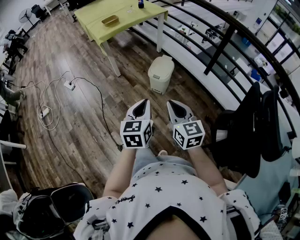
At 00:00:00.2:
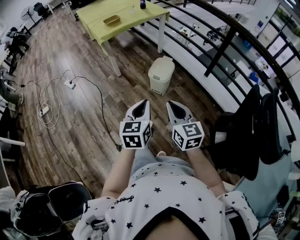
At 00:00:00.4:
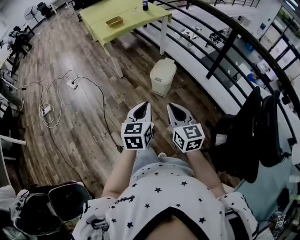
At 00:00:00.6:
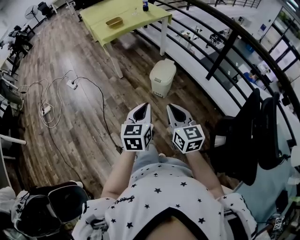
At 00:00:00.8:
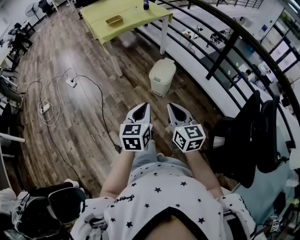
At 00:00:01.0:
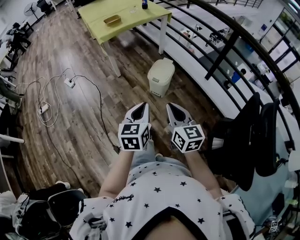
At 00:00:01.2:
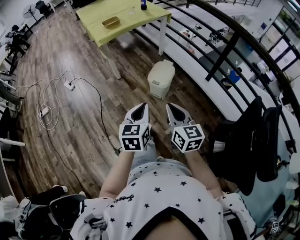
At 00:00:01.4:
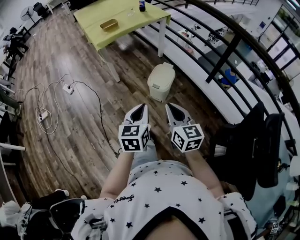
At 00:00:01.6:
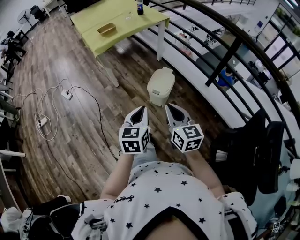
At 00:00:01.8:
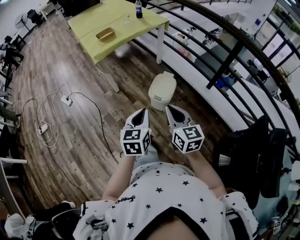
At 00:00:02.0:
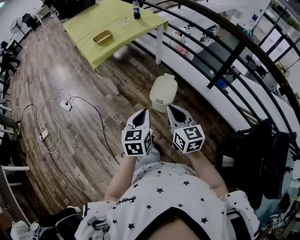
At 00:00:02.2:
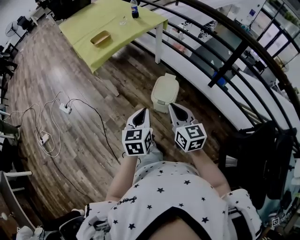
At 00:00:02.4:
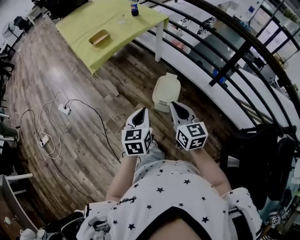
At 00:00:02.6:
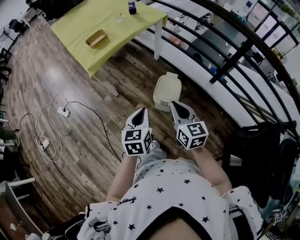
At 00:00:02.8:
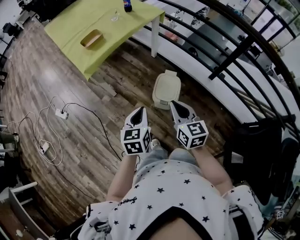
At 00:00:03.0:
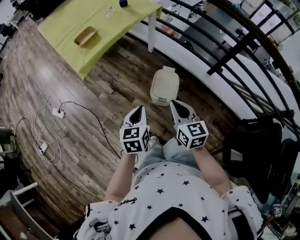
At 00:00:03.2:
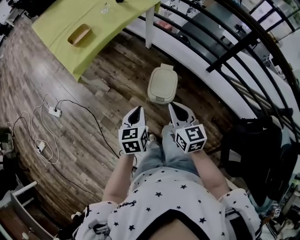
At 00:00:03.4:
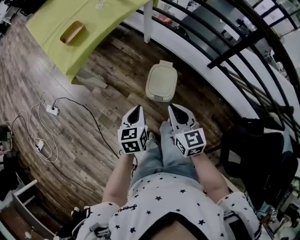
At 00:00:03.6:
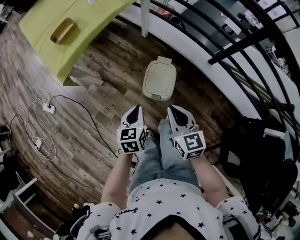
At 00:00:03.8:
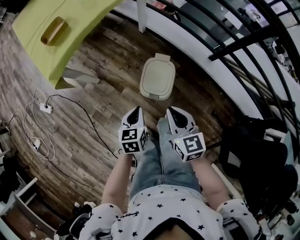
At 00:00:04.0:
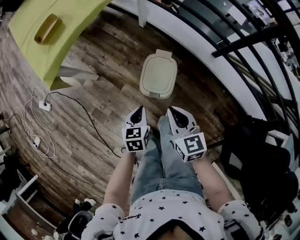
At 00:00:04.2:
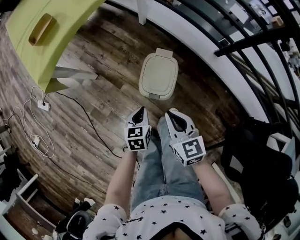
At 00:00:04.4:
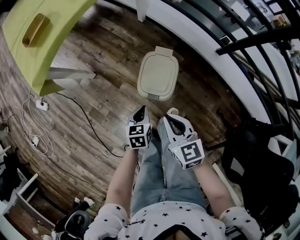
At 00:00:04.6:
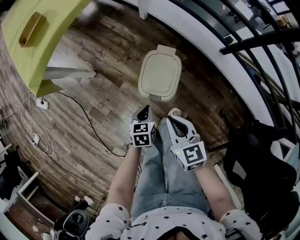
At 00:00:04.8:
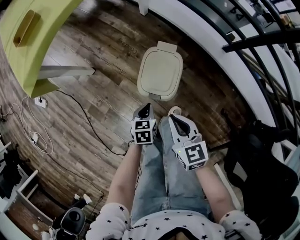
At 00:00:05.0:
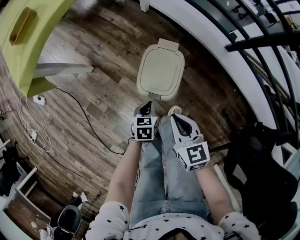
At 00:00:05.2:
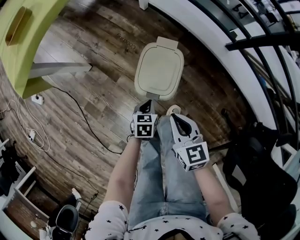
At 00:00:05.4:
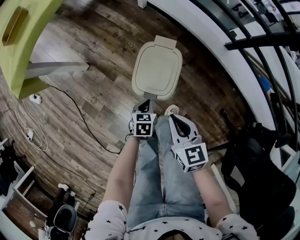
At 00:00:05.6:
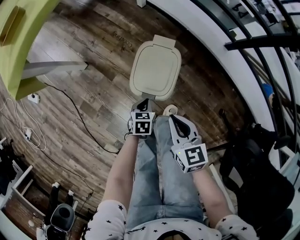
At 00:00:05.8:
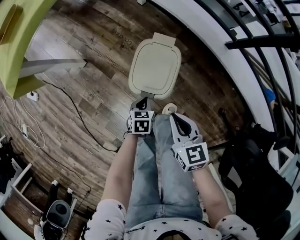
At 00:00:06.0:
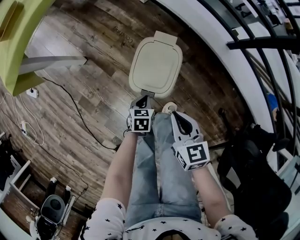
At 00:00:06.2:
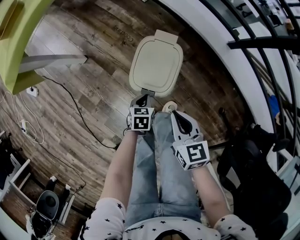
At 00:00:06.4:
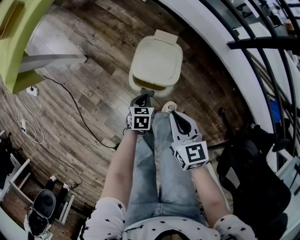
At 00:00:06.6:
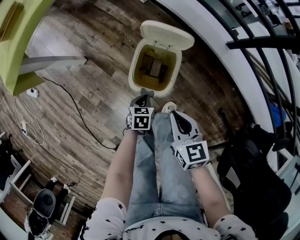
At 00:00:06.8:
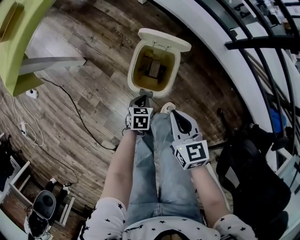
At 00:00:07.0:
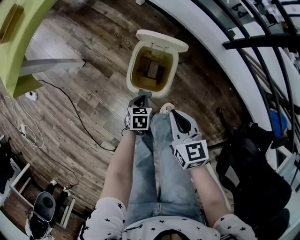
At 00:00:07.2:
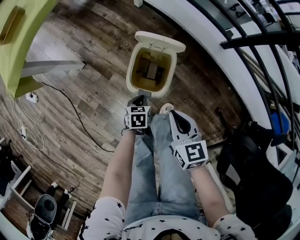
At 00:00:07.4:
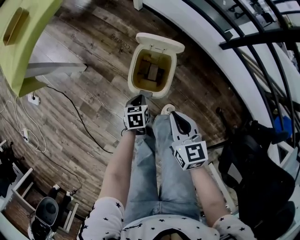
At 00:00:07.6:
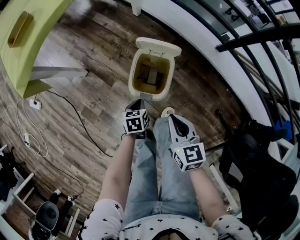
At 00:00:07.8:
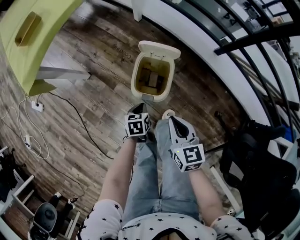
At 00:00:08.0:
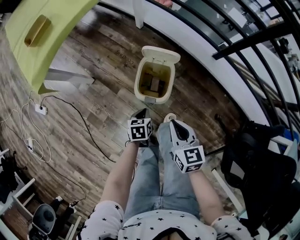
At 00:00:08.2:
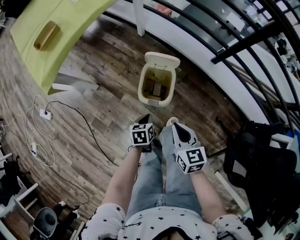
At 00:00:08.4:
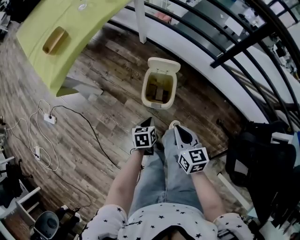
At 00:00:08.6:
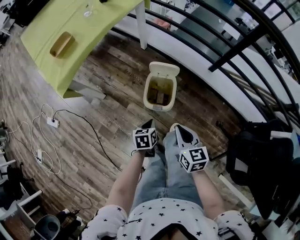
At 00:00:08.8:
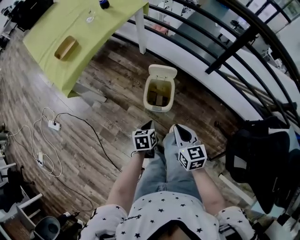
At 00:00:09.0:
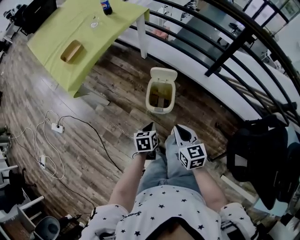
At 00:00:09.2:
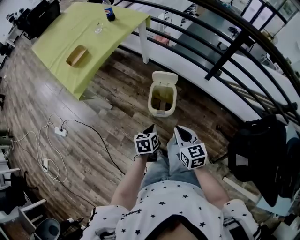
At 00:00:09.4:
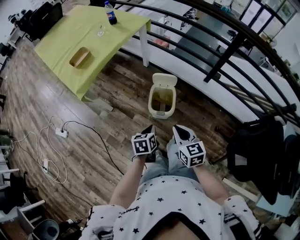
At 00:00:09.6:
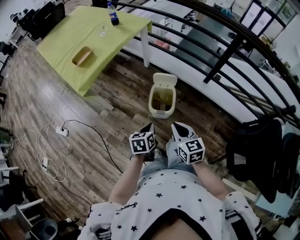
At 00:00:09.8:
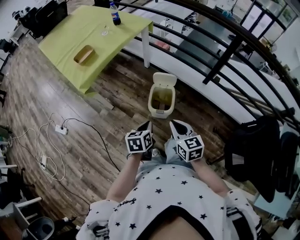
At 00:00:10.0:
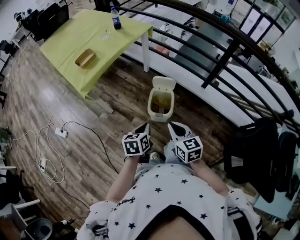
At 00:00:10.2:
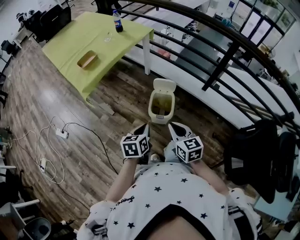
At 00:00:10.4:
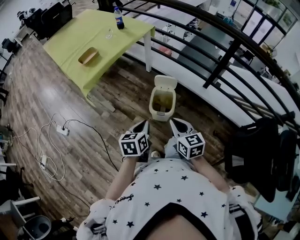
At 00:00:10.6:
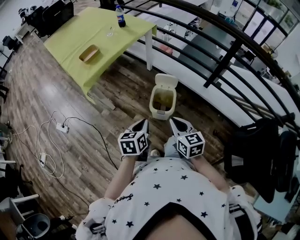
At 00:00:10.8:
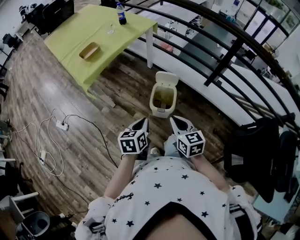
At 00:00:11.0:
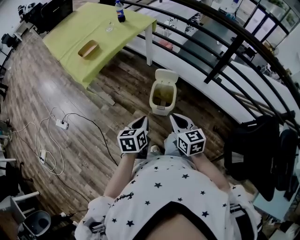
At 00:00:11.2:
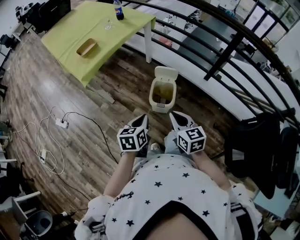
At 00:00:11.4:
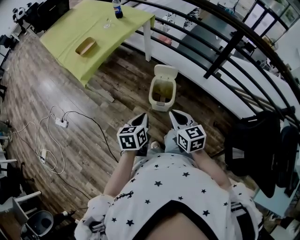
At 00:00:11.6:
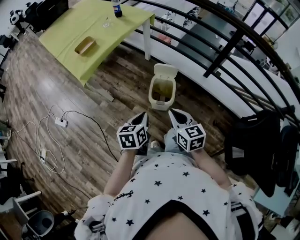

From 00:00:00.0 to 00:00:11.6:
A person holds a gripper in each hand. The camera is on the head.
From 00:00:00.0 to 00:00:01.4: The grippers both shift forward by roughly 10 cm.
From 00:00:01.4 to 00:00:02.8: Both grippers move forward, approximately 25 cm.
From 00:00:02.8 to 00:00:04.4: The grippers both shift downward by roughly 30 cm. The left gripper swivels roughly 20 degrees.
From 00:00:04.4 to 00:00:05.8: The right gripper is displaced downward and to the right by approximately 15 cm; the left gripper moves downward, approximately 20 cm.
From 00:00:05.8 to 00:00:07.2: The grippers make only small movements.
From 00:00:07.2 to 00:00:08.8: The left gripper heads upward, covering about 25 cm, while the right gripper heads upward and backward, covering approximately 20 cm.
From 00:00:08.8 to 00:00:10.2: The left gripper goes about 20 cm upward, while the right gripper is displaced upward by approximately 10 cm.
From 00:00:10.2 to 00:00:11.6: The grippers stay close to where they were, moving slightly.

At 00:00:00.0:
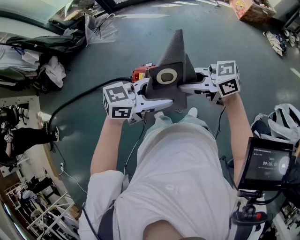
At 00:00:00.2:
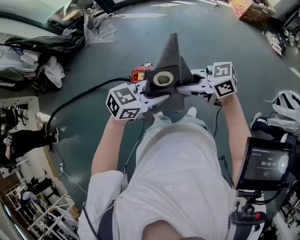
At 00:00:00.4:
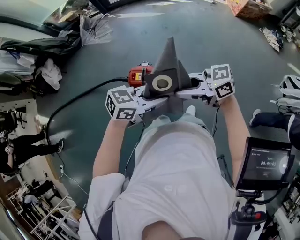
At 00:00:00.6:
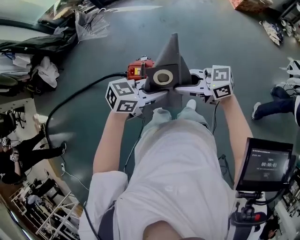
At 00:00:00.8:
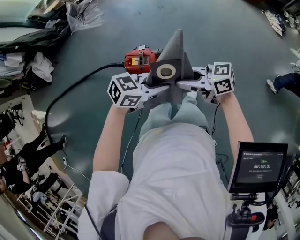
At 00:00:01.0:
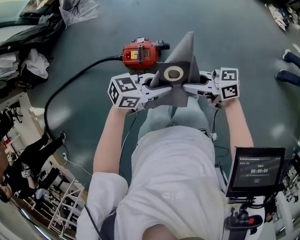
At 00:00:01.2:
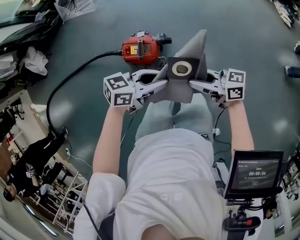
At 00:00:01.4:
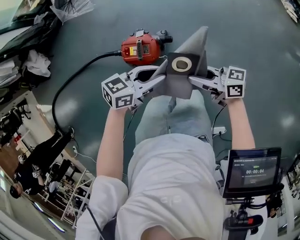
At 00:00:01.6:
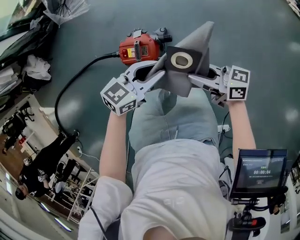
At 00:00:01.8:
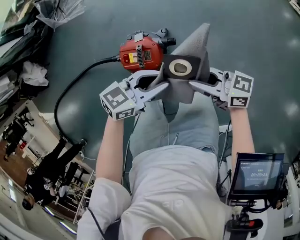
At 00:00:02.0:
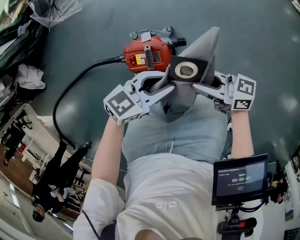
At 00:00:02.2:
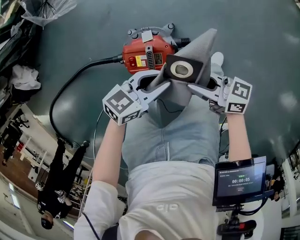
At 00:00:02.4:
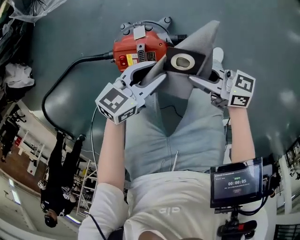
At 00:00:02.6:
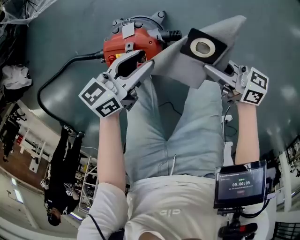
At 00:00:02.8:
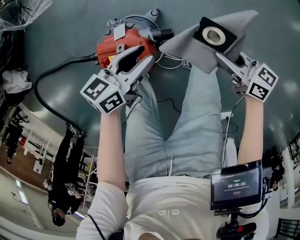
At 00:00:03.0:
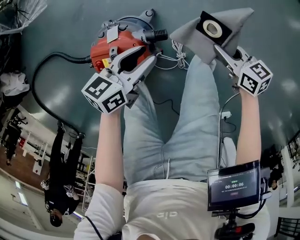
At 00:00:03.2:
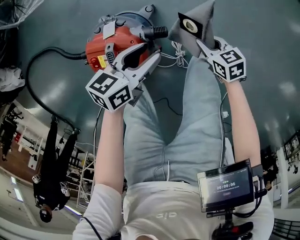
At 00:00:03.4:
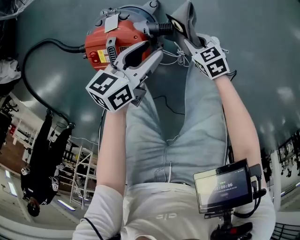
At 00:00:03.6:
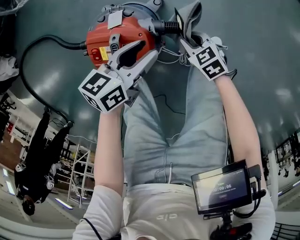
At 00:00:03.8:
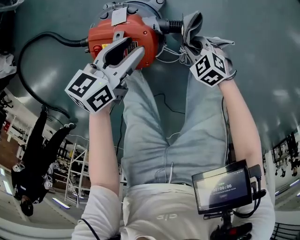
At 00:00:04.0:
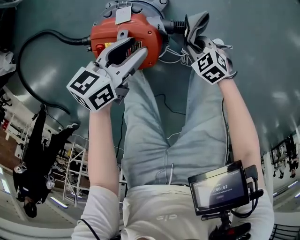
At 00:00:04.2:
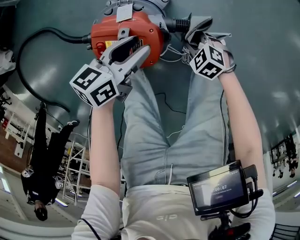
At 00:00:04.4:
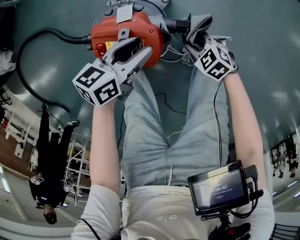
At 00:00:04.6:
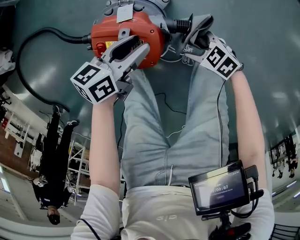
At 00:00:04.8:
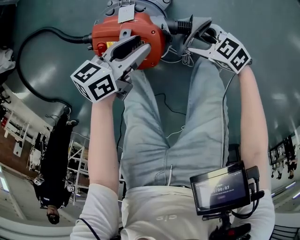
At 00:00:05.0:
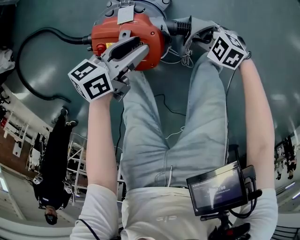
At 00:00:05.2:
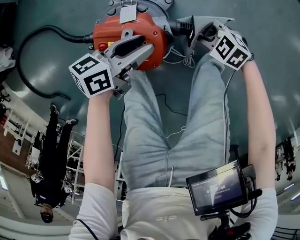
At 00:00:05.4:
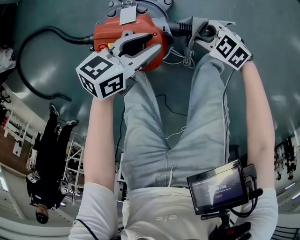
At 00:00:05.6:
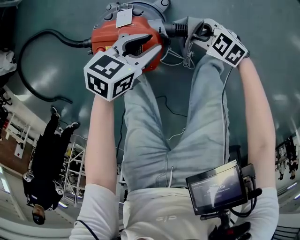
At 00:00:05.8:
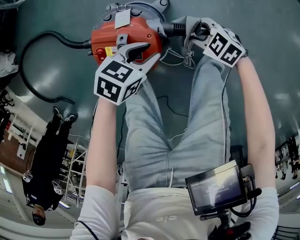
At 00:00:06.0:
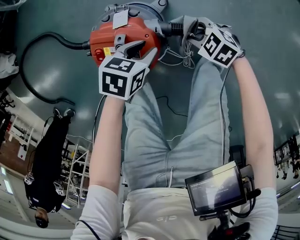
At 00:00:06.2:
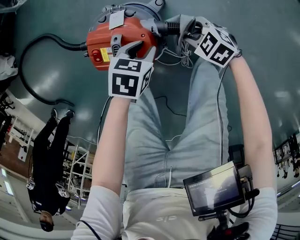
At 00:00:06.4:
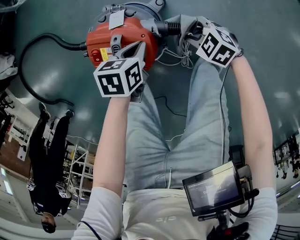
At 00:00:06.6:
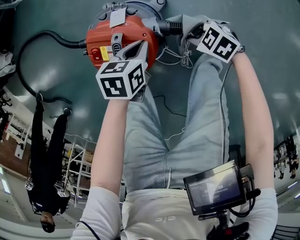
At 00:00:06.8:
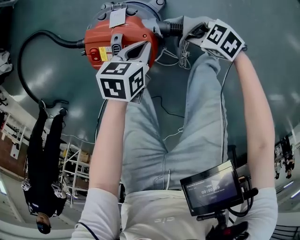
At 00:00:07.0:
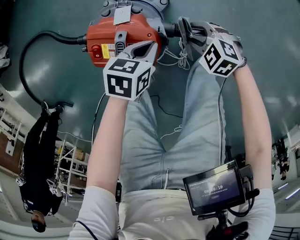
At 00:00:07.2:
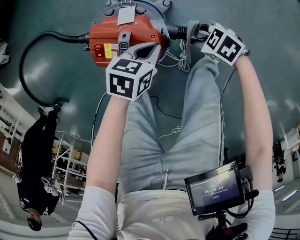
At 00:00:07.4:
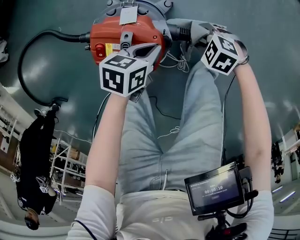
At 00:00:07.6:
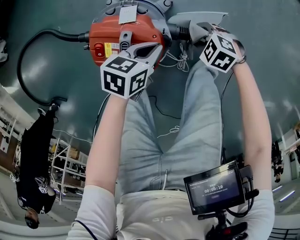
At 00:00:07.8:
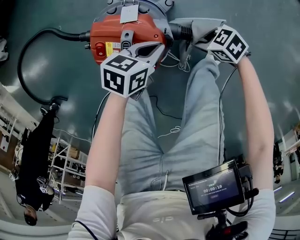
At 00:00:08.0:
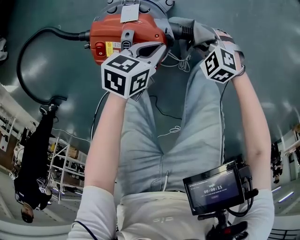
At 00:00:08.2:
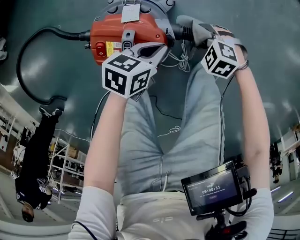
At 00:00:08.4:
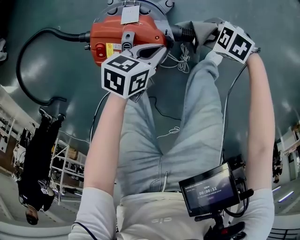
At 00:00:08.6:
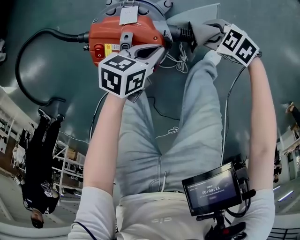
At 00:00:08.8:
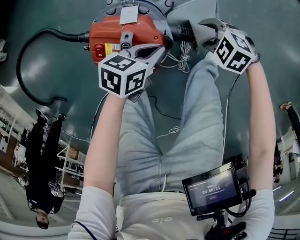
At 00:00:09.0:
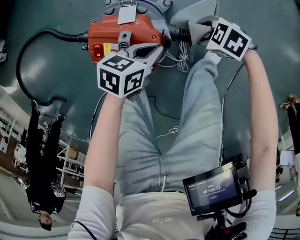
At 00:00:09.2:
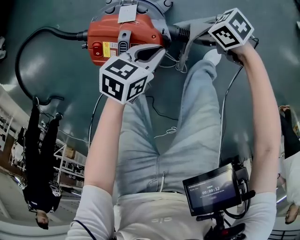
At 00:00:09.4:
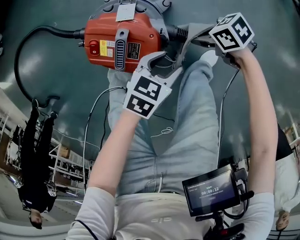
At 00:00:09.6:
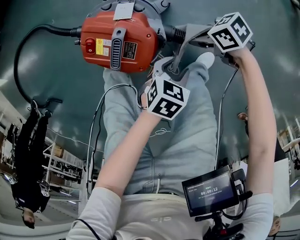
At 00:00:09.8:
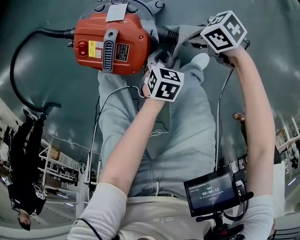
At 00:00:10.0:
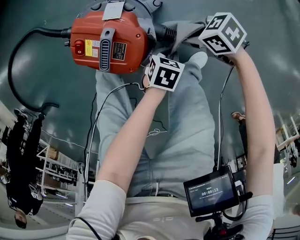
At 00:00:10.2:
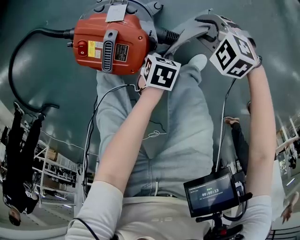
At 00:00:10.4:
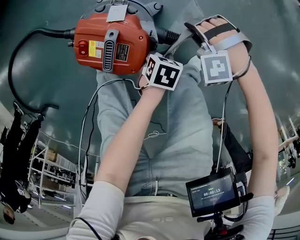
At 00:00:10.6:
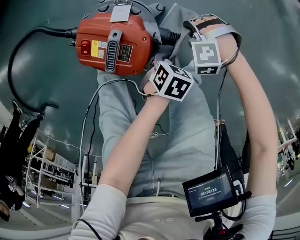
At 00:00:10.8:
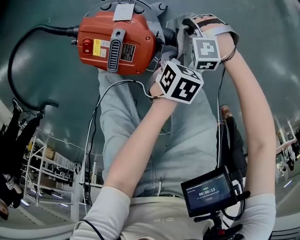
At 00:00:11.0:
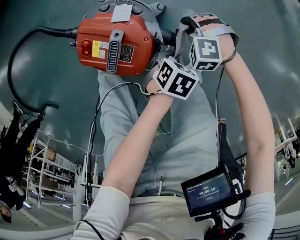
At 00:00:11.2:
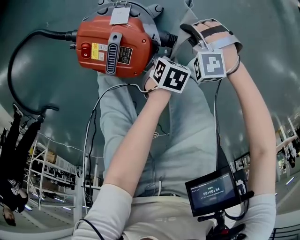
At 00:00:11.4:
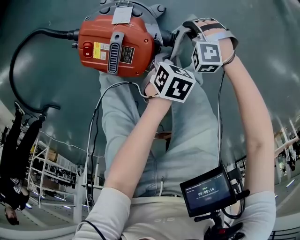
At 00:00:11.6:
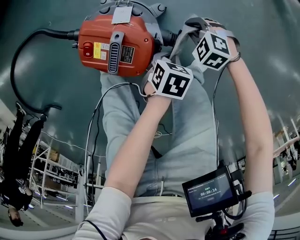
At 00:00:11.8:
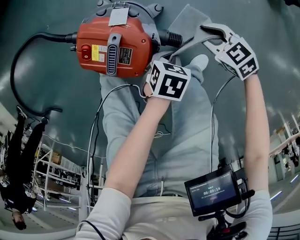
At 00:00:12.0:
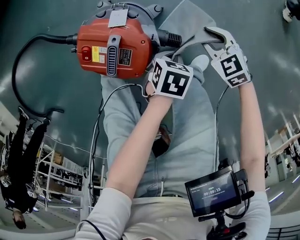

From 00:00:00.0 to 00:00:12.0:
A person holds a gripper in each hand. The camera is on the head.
From 00:00:00.0 to 00:00:01.6: Both grippers move downward, about 20 cm. The left gripper closes, while the right gripper swivels about 30 degrees.
From 00:00:01.6 to 00:00:03.0: Both grippers travel together downward, roughly 30 cm. The left gripper changes its angle by approximately 20 degrees; the right gripper points its fingers some 40 degrees further downward.
From 00:00:03.0 to 00:00:04.4: The right gripper shifts by some 25 cm, and rotates around the line of its fingers by approximately 50 degrees, counterclockwise from behind; the left gripper changes place by about 10 cm.
From 00:00:04.4 to 00:00:06.0: The right gripper moves about 5 cm, and opens, then closes once more, while the left gripper moves approximately 5 cm, and changes its angle by roughly 30 degrees.
From 00:00:06.0 to 00:00:07.6: The left gripper closes up.
From 00:00:09.0 to 00:00:10.4: The left gripper moves downward, some 10 cm, turns by roughly 20 degrees, and opens, then closes again, while the right gripper twists some 60 degrees counterclockwise, seen from behind.
From 00:00:10.4 to 00:00:12.0: The right gripper moves up and down over about 5 cm, changing direction 3 times, and twists approximately 60 degrees clockwise, seen from behind. The left gripper swings up and down, about 5 cm each way, with 2 reversals.
